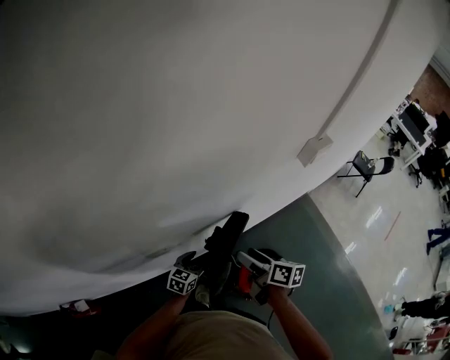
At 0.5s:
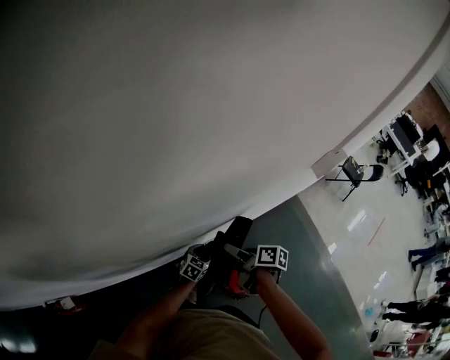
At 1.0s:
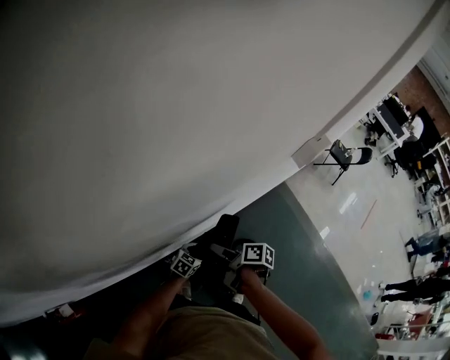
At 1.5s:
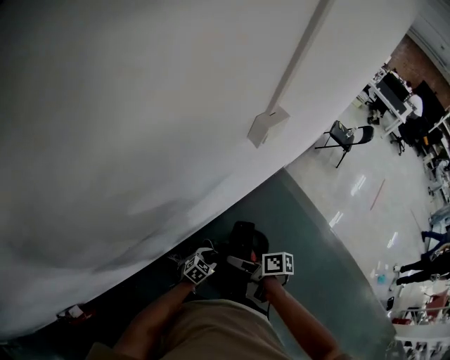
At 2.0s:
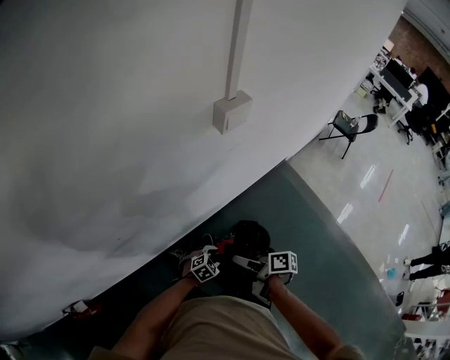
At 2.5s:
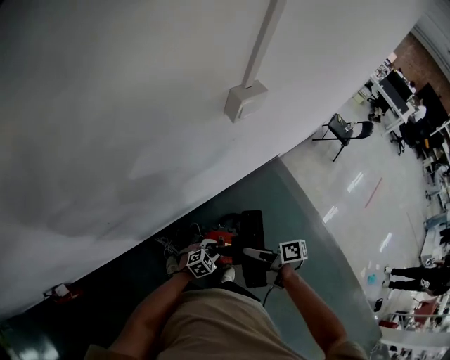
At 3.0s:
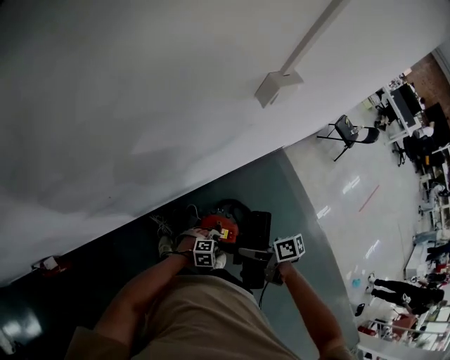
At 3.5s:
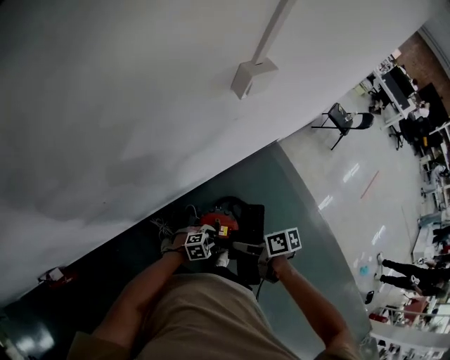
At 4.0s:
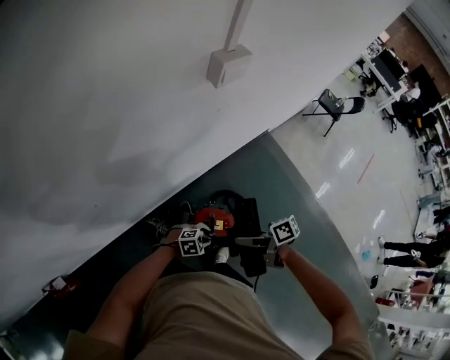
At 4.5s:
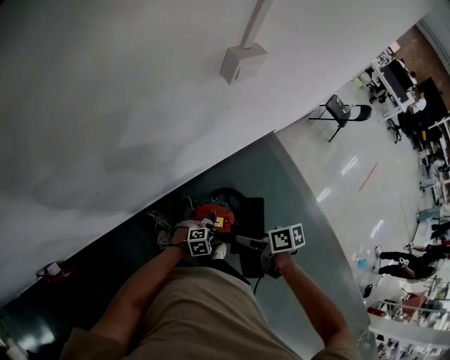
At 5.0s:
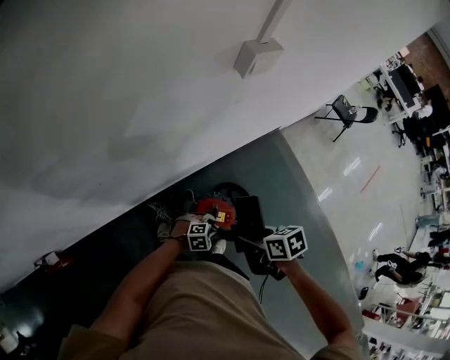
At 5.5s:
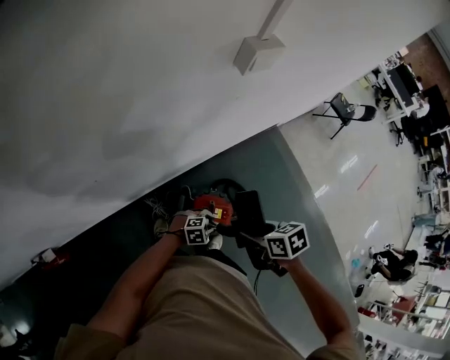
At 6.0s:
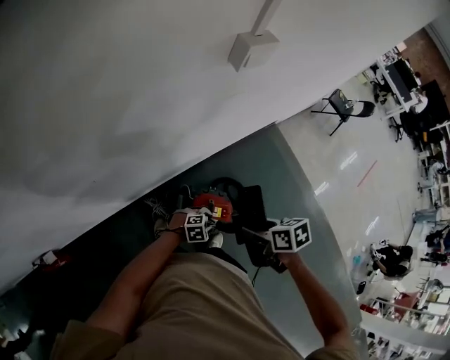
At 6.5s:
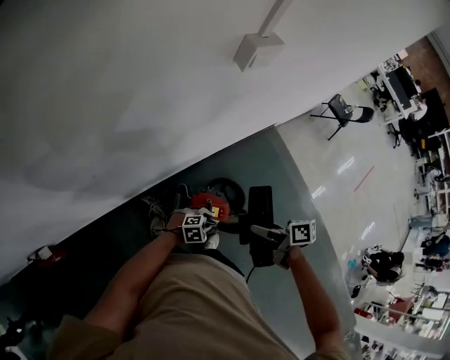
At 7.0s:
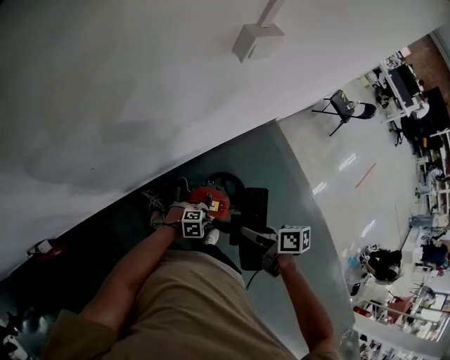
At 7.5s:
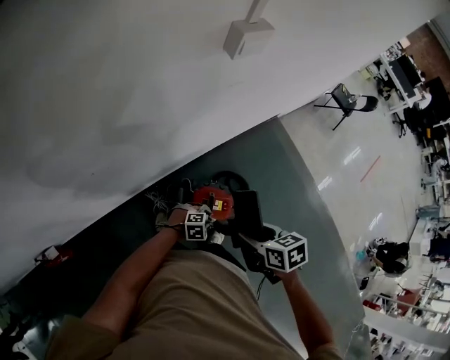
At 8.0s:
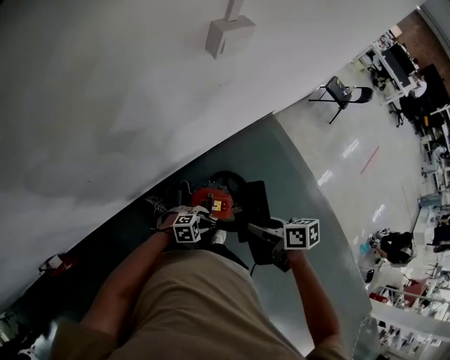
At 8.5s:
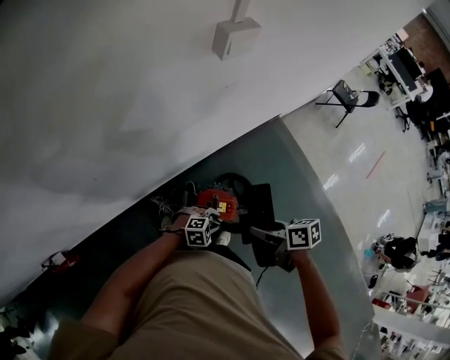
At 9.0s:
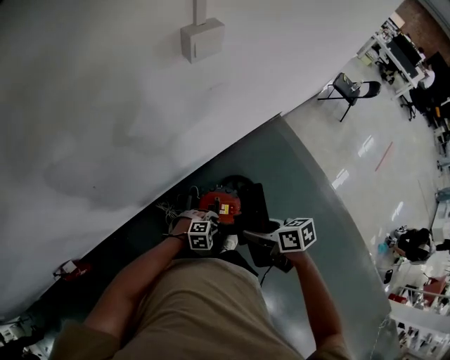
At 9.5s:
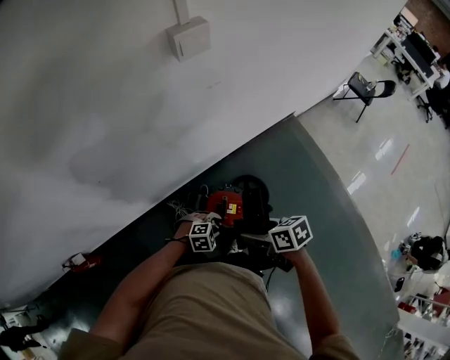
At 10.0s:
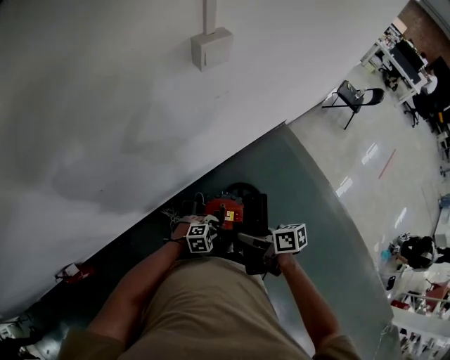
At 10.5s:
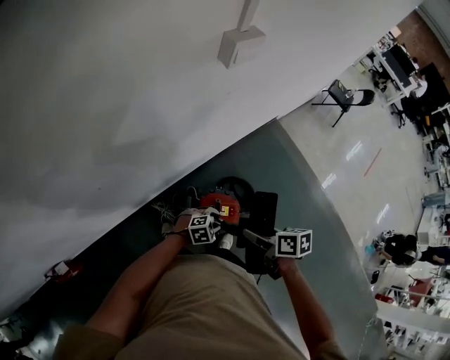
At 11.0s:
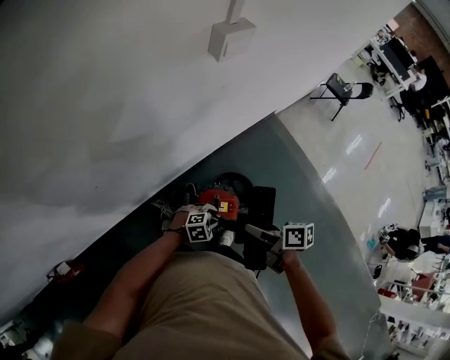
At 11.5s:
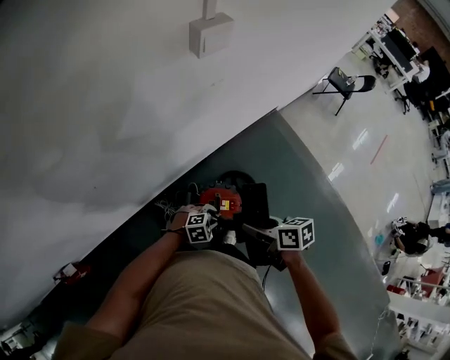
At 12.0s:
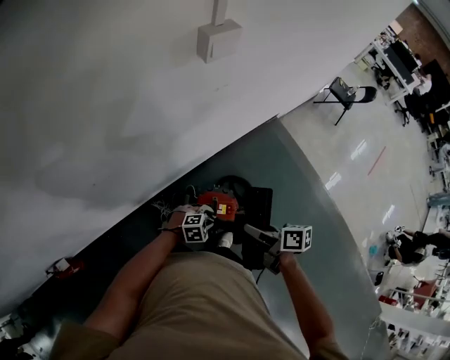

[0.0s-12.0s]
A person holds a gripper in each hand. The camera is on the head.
0.0s to 2.0s: The left gripper moves to the right, approximately 30 cm, and turns by approximately 50 degrees; the right gripper shifts approximately 20 cm to the right, downward and backward, and changes its angle by some 30 degrees.
2.0s to 4.0s: The left gripper shifts by about 10 cm, and turns by about 20 degrees. The right gripper moves about 5 cm, and turns by some 30 degrees.
4.0s to 6.0s: The right gripper tips its fingers downward by roughly 30 degrees.
8.0s to 10.0s: There are only small adjustments of the grippers.

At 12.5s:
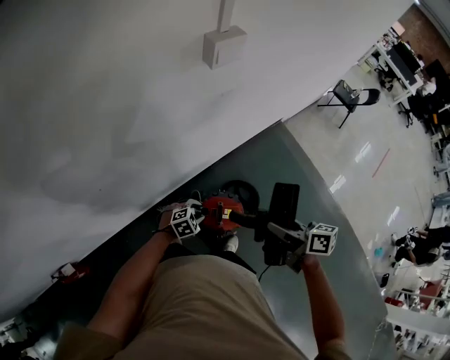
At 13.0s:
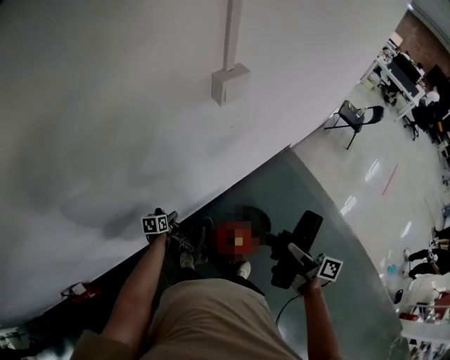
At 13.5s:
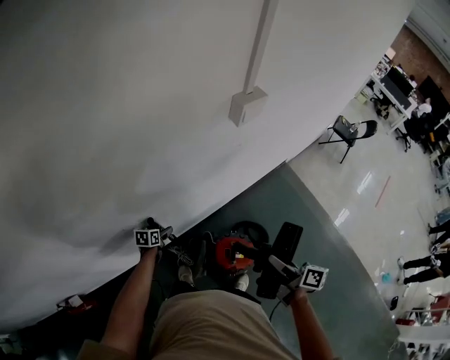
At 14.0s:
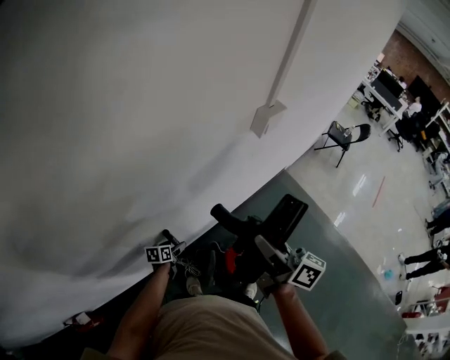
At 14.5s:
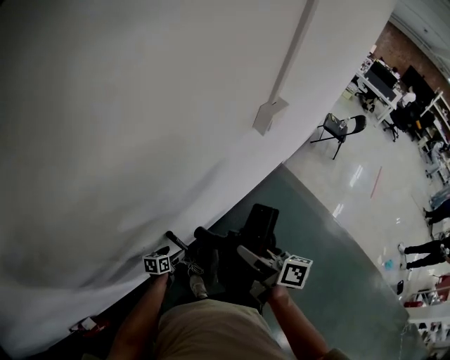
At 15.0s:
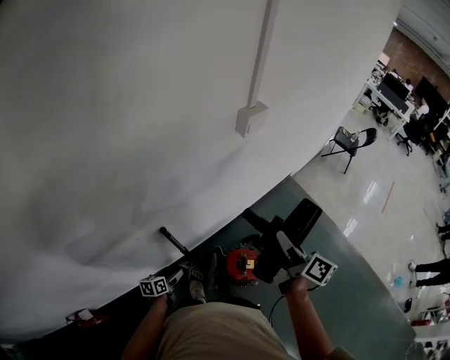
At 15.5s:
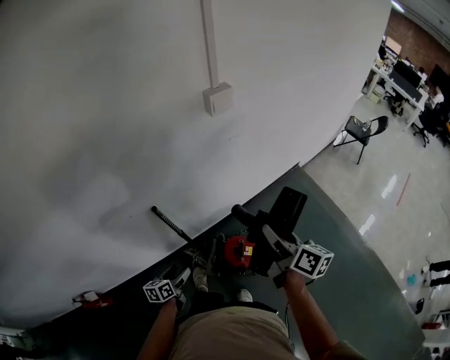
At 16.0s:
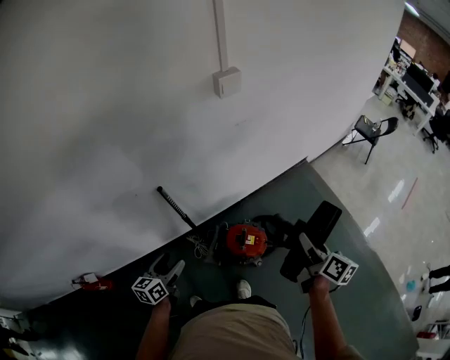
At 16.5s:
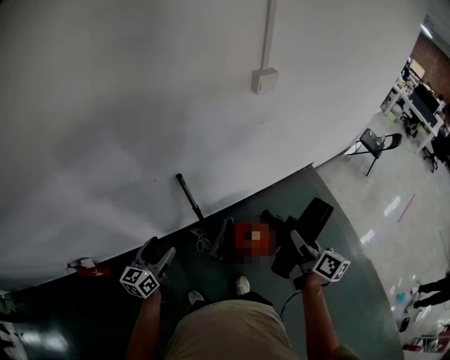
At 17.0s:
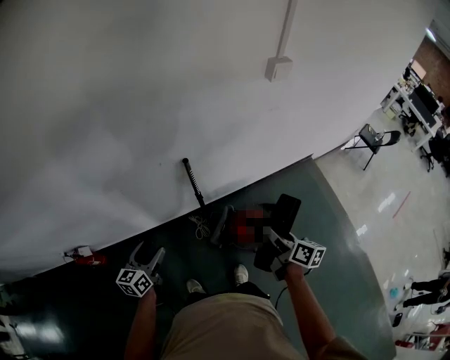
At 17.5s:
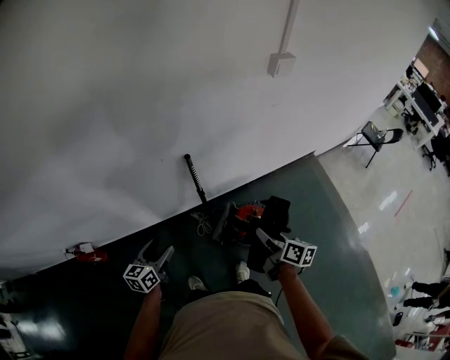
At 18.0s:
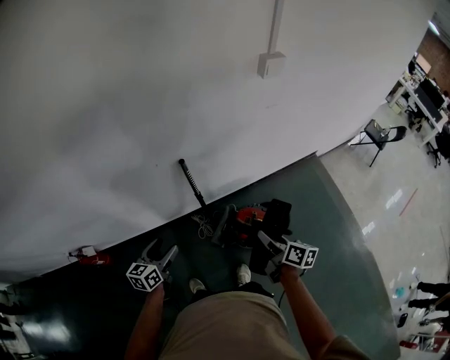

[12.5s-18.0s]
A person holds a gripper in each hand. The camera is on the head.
12.5s to 14.5s: Both grippers move to the left, approximately 30 cm. The left gripper rolls counterclockwise, seen from behind, by about 70 degrees, and opens, while the right gripper swivels some 20 degrees.
14.5s to 16.0s: The right gripper shifts approximately 35 cm to the right, while the left gripper moves backward, upward and to the right, some 35 cm, and changes its angle by about 30 degrees.
16.0s to 18.0s: The left gripper shifts roughly 10 cm to the left. The right gripper moves to the left and downward, some 25 cm, and turns by some 20 degrees.

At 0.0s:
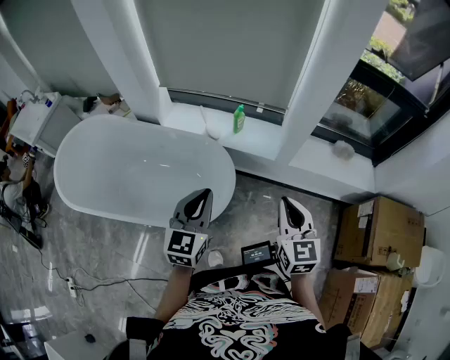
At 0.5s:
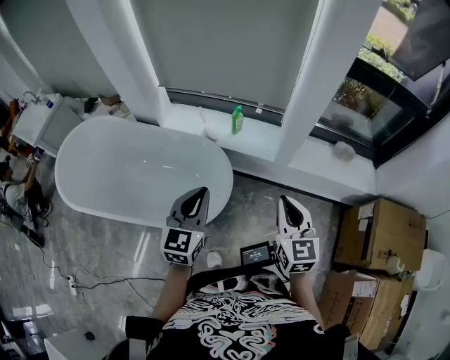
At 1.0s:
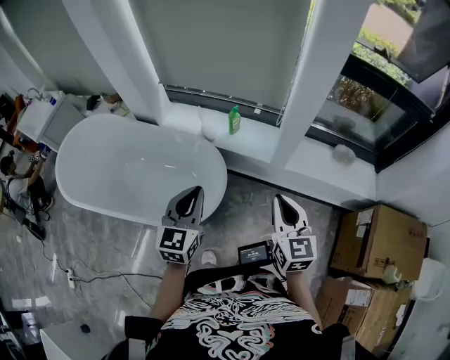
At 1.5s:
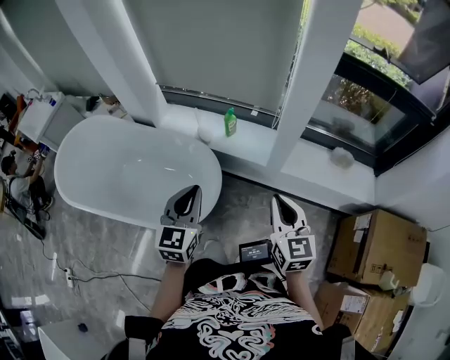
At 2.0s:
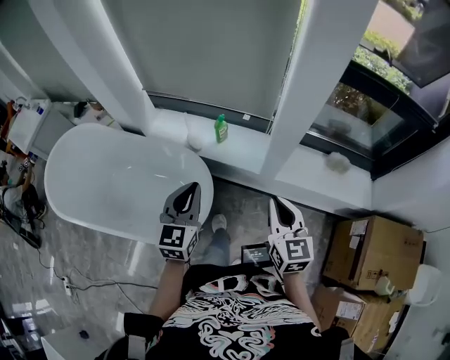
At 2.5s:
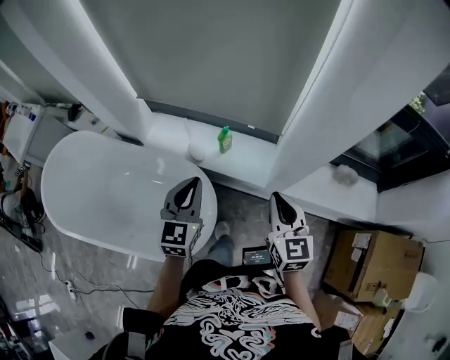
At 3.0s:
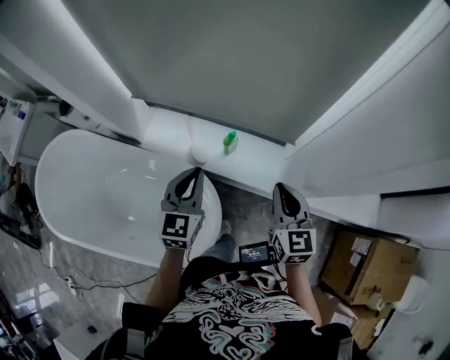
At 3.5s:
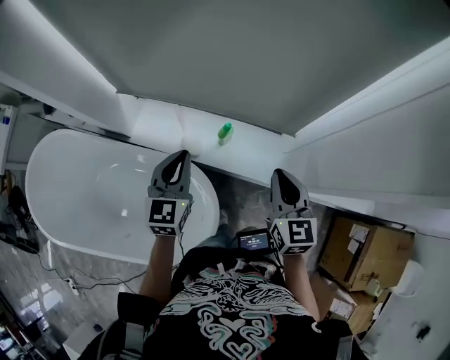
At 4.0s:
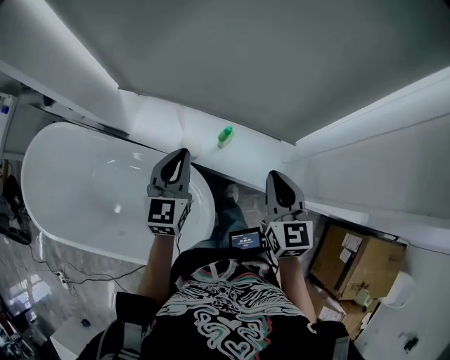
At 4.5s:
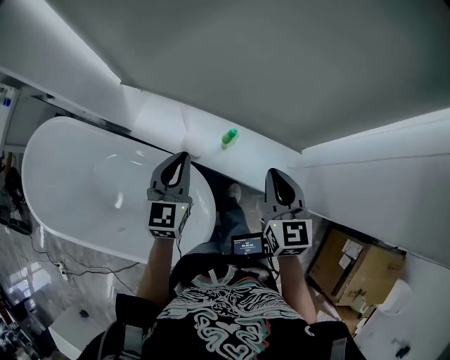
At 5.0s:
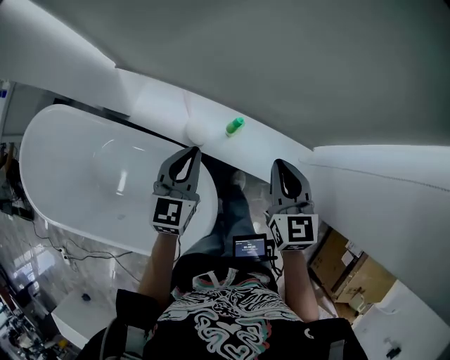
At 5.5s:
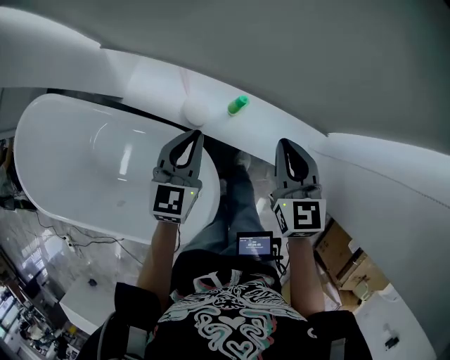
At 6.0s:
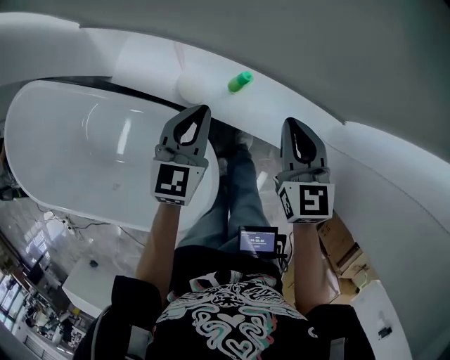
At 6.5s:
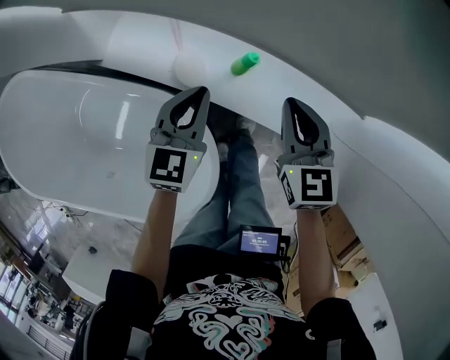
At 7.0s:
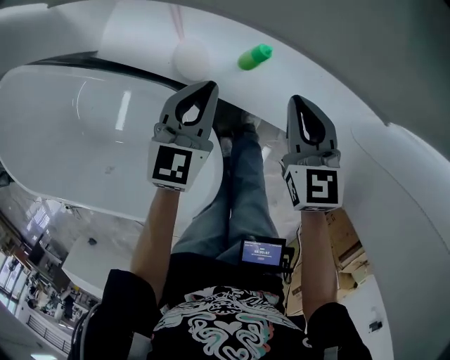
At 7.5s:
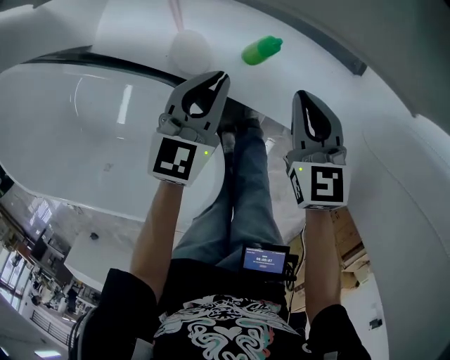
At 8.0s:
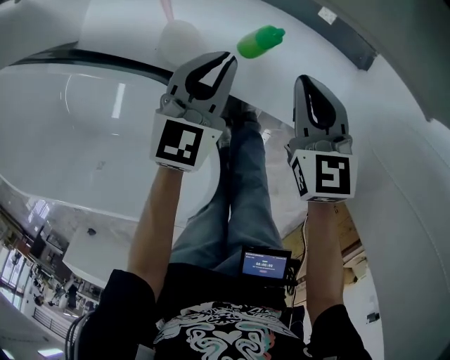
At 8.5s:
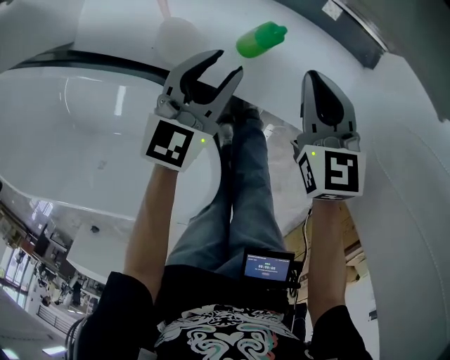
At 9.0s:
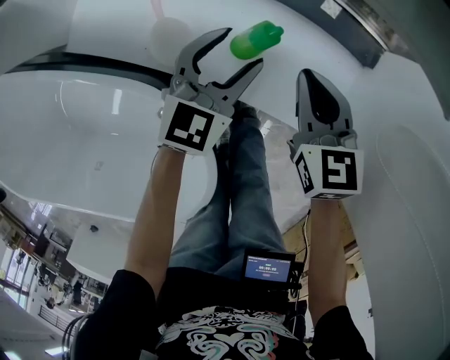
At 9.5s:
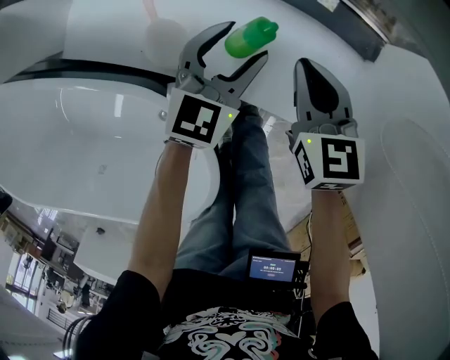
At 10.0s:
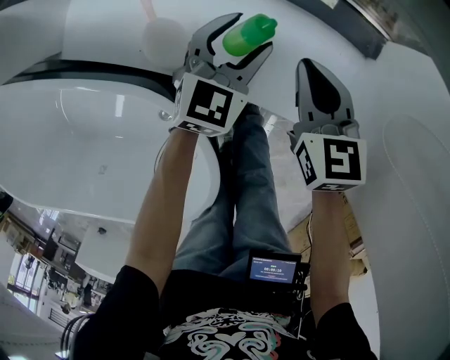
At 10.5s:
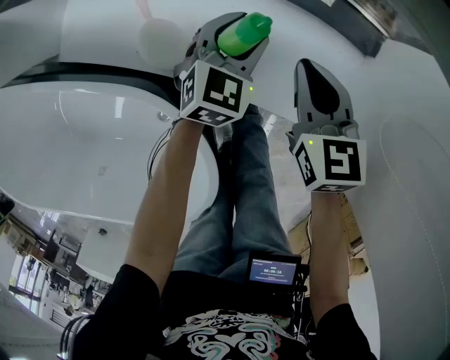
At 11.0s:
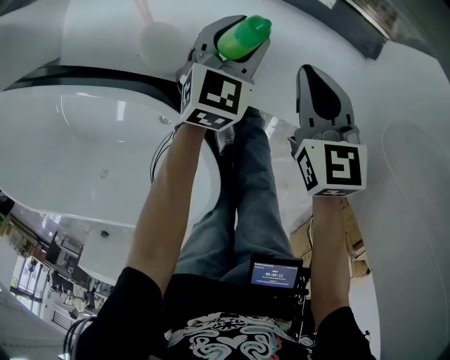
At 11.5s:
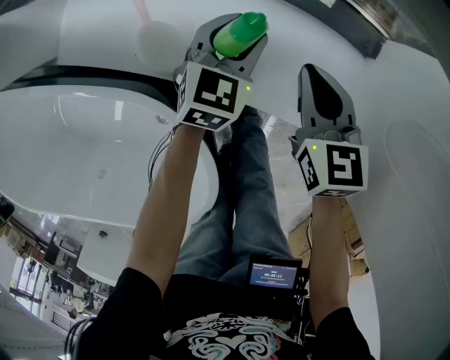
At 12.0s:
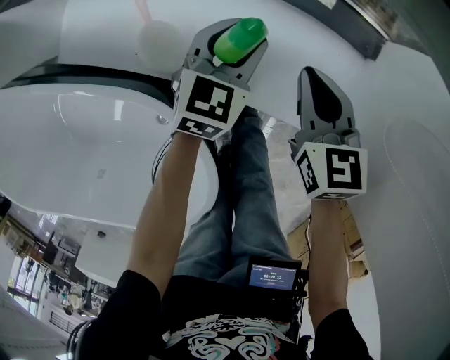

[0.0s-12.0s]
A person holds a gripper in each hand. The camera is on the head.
0.0s to 2.0s: The two grippers go about 15 cm forward and to the right.
2.0s to 4.0s: The grippers both shift forward by roughly 35 cm.
4.0s to 6.0s: The right gripper heads downward and forward, covering roughly 25 cm, while the left gripper shifts about 20 cm downward.
6.0s to 8.0s: Both grippers travel together downward, some 15 cm.
8.0s to 10.0s: The right gripper moves approximately 5 cm. Meanwhile the left gripper travels downward and to the right by approximately 10 cm, and opens its fingers.
10.0s to 12.0s: The grippers make only small movements.
